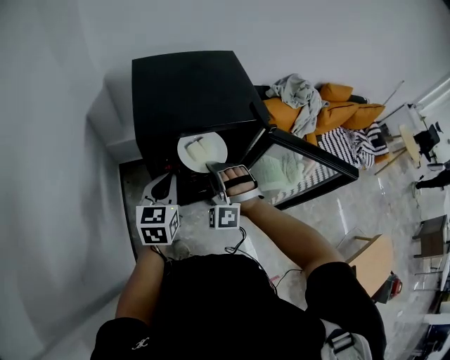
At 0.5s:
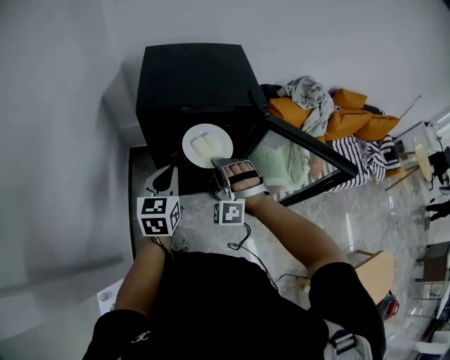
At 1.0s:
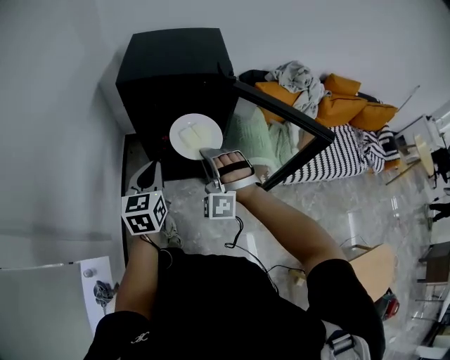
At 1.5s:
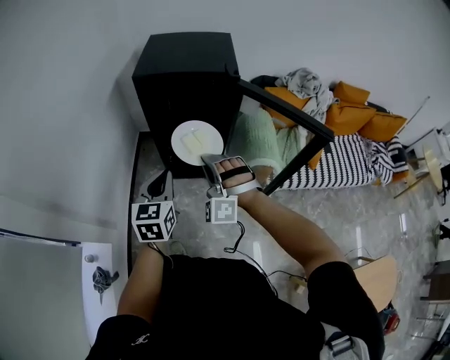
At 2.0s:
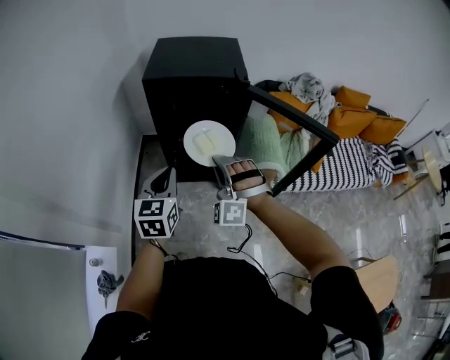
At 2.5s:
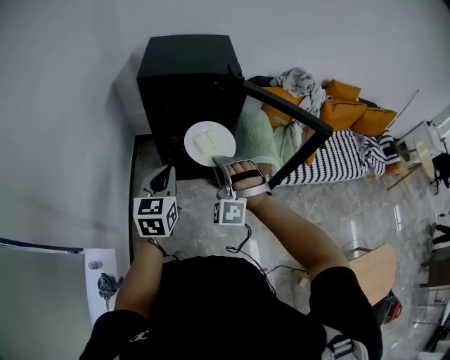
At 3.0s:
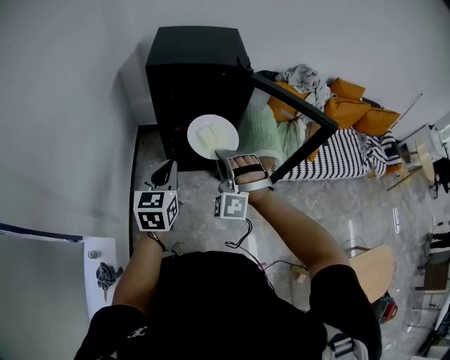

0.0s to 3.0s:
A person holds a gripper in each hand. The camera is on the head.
0.0s to 1.5s: Both grippers travel together backward and to the right, some 25 cm.
1.5s to 3.0s: The grippers make only small movements.

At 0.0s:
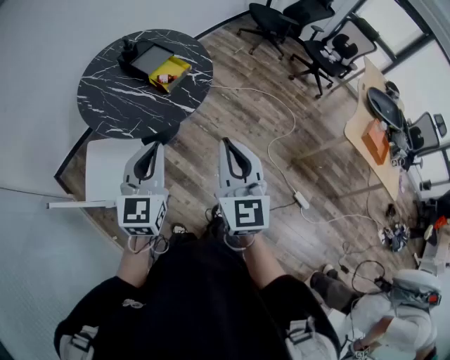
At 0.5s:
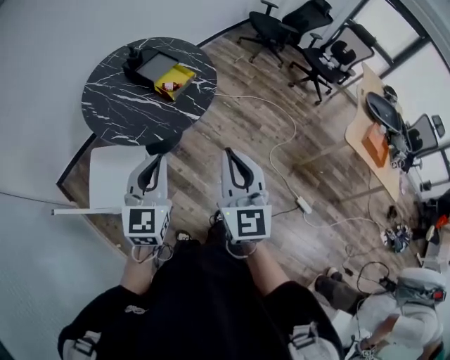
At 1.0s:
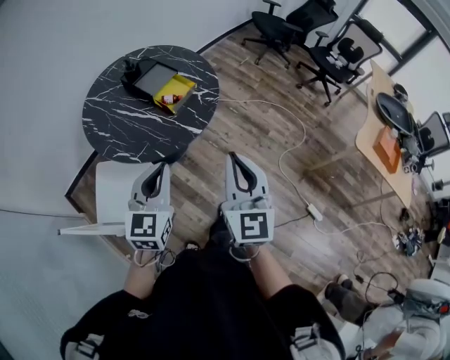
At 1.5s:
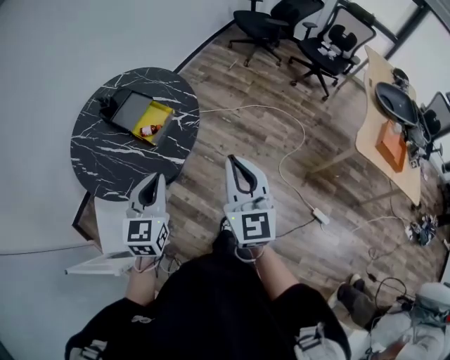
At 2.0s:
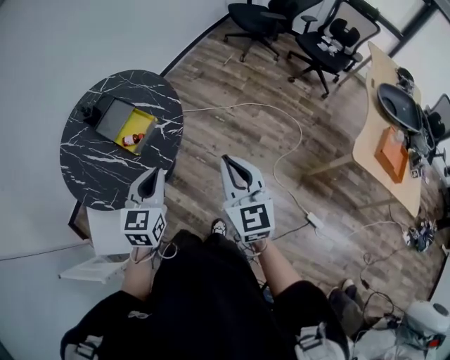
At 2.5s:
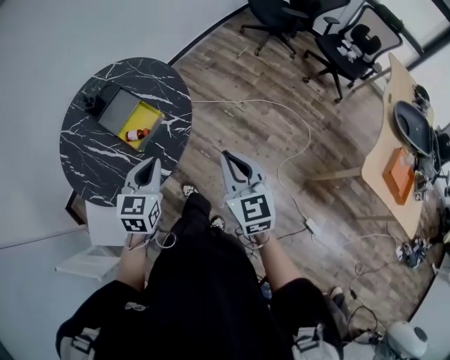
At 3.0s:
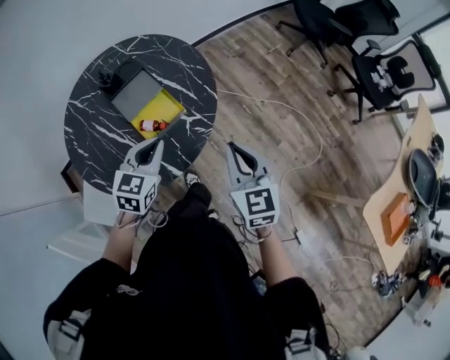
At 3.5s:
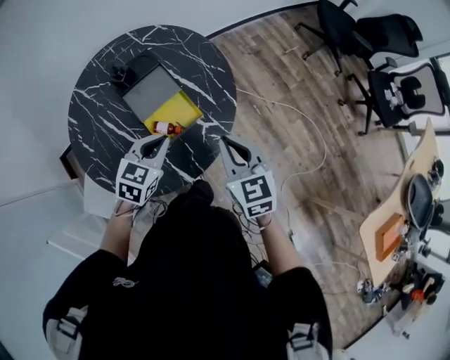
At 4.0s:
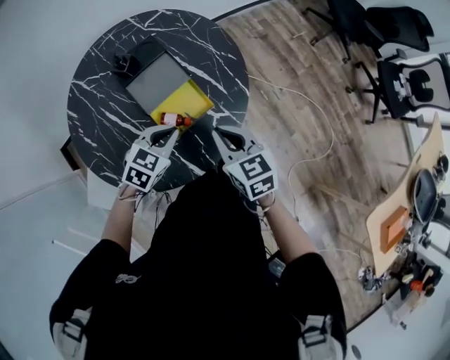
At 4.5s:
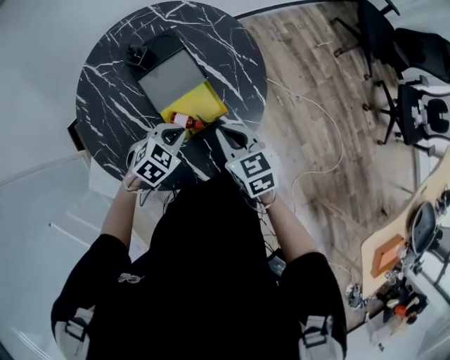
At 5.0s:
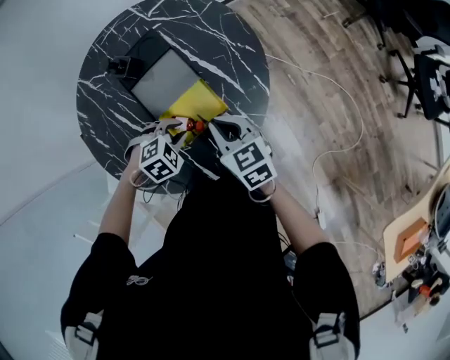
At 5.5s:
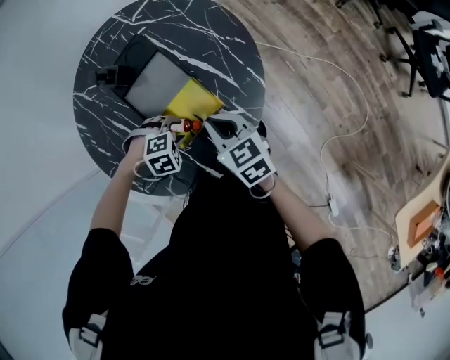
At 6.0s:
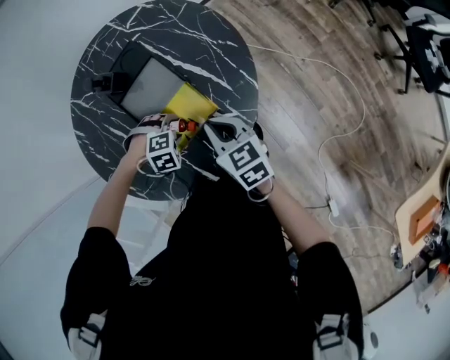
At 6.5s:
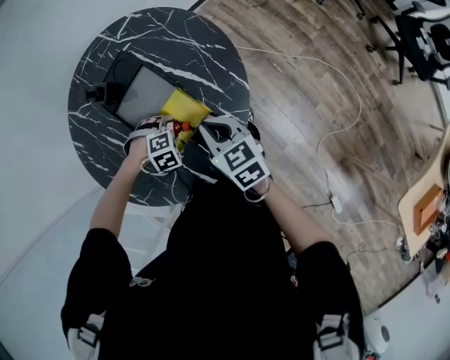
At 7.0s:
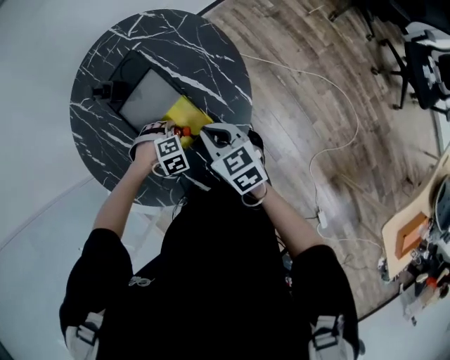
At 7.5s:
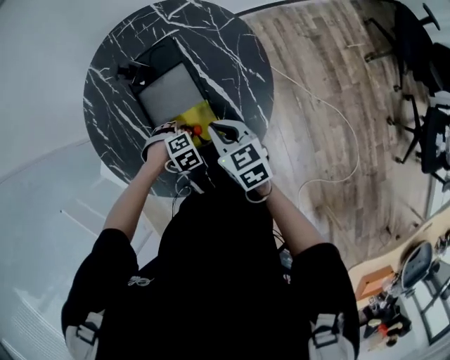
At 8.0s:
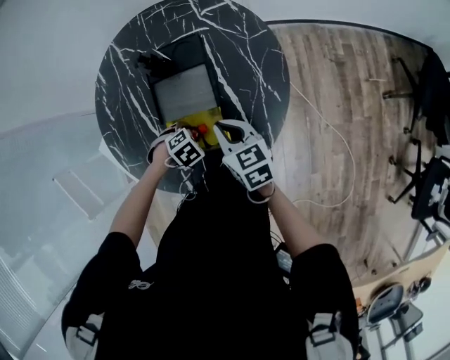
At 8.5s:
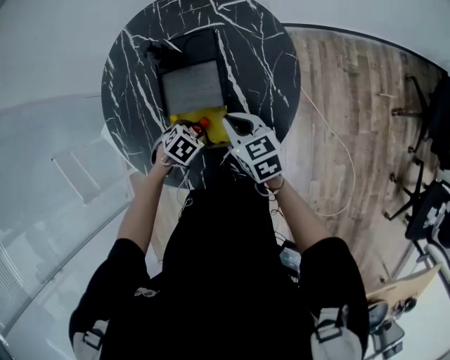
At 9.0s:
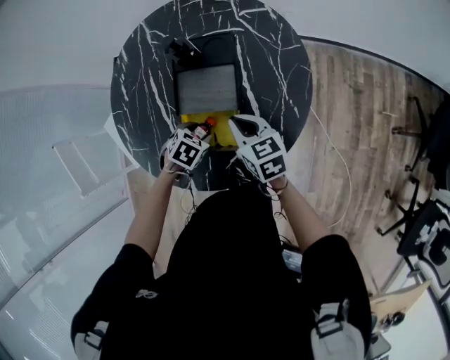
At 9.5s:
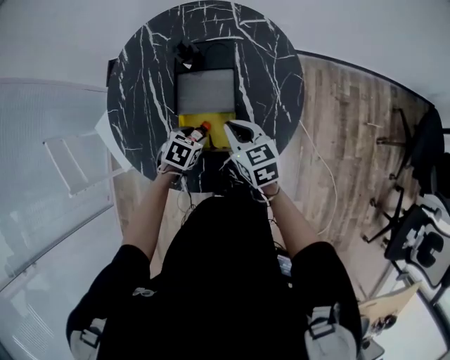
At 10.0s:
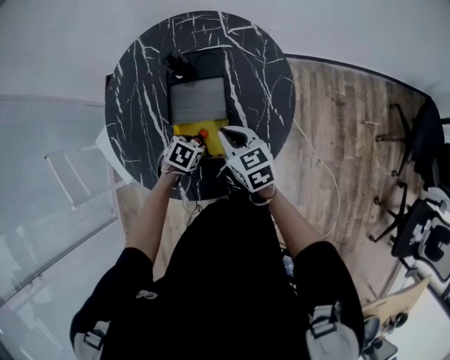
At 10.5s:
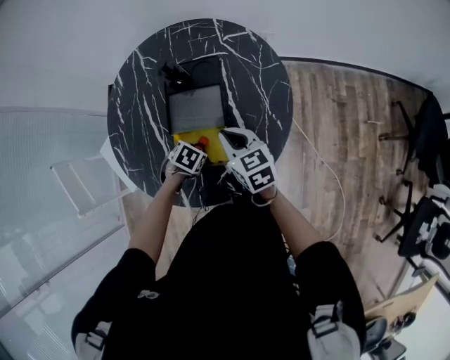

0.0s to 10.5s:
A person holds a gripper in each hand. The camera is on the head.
0.0s to 2.0s: Both grippers travel together forward and to the right, roughly 30 cm.
2.0s to 4.0s: The right gripper shifts about 40 cm forward, to the left and downward, and turns by some 40 degrees; the left gripper heads forward, downward and to the left, covering about 30 cm, and changes its angle by about 20 degrees.
4.0s to 6.5s: The right gripper changes place by roughly 10 cm. The left gripper is displaced downward by some 15 cm, tilts its fingers approximately 40 degrees downward, and opens.
6.5s to 8.5s: The left gripper twists roughly 80 degrees counterclockwise, seen from behind; the right gripper shifts by about 10 cm, and changes its angle by about 40 degrees.

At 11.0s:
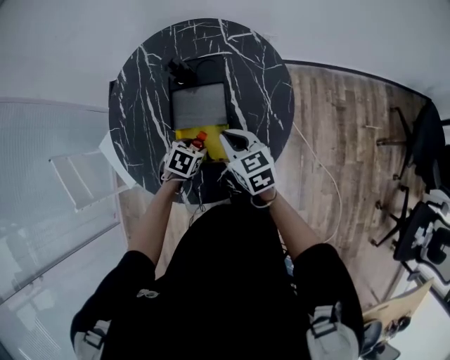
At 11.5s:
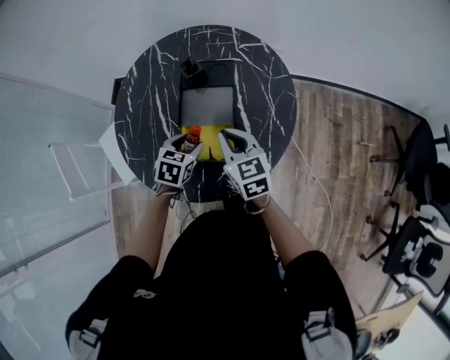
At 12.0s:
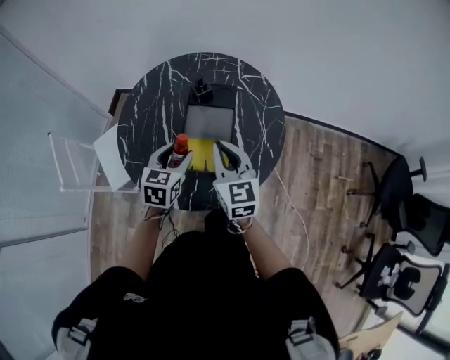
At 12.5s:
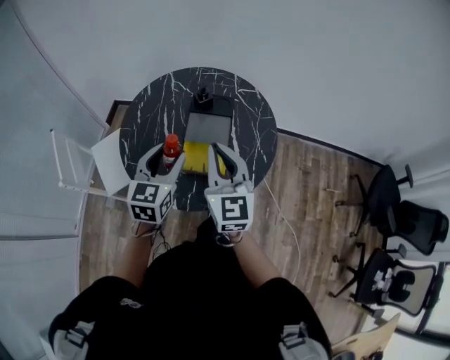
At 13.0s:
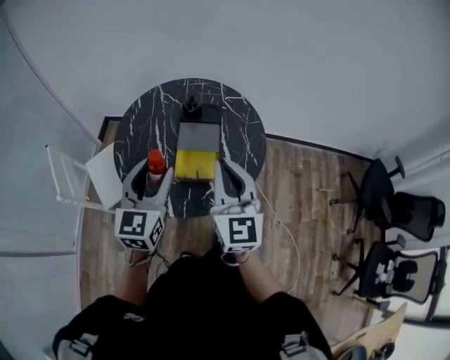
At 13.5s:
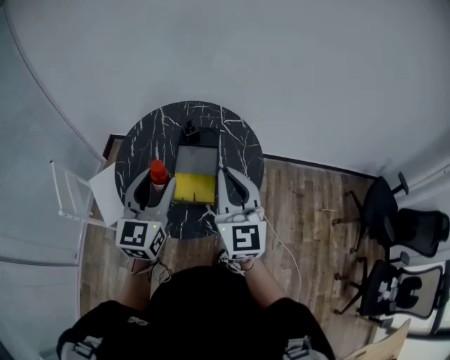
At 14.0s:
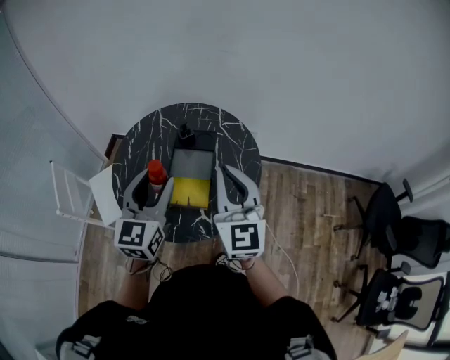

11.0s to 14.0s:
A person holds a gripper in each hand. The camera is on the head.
11.0s to 12.5s: The right gripper moves upward and backward, some 25 cm, and swivels roughly 40 degrees. Meanwhile the left gripper is displaced upward by approximately 30 cm, and points its fingers some 50 degrees further upward.
12.5s to 14.0s: The right gripper is displaced to the right and upward by approximately 15 cm. Meanwhile the left gripper heads upward and to the right, covering some 10 cm.

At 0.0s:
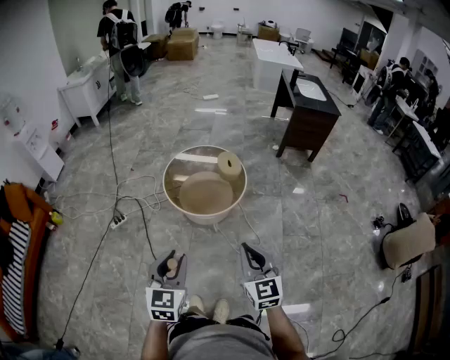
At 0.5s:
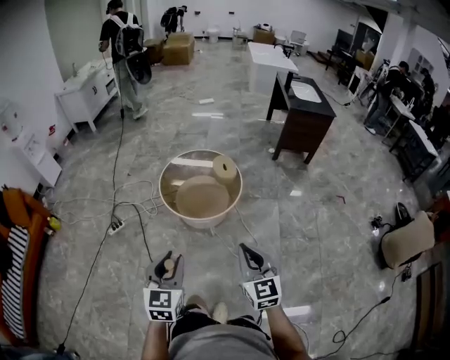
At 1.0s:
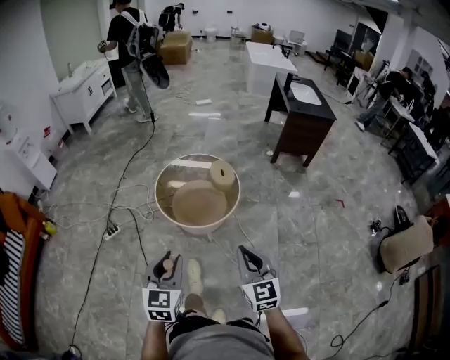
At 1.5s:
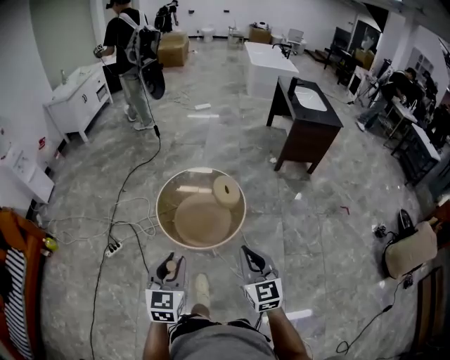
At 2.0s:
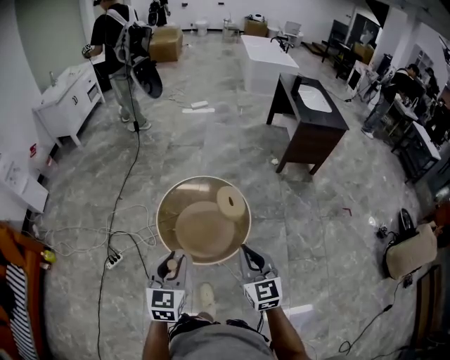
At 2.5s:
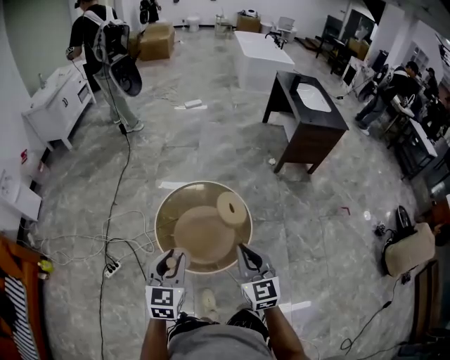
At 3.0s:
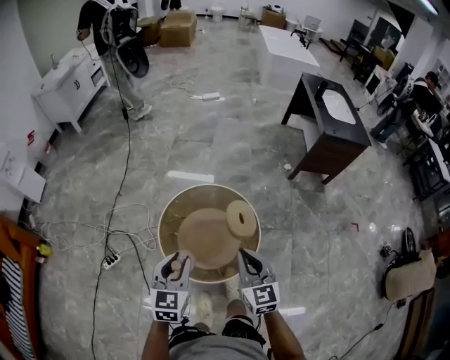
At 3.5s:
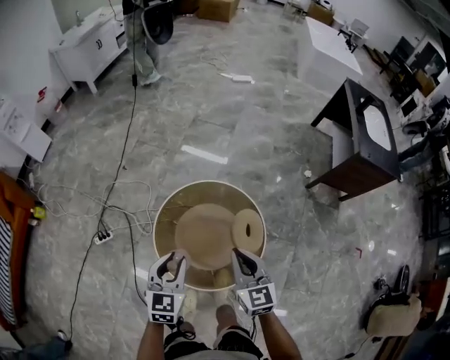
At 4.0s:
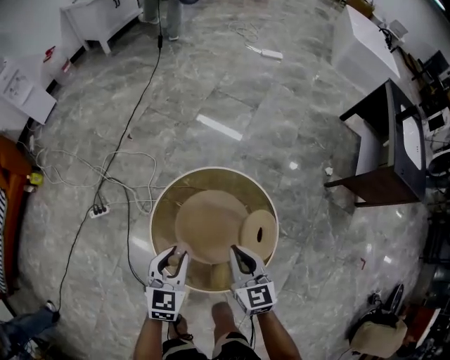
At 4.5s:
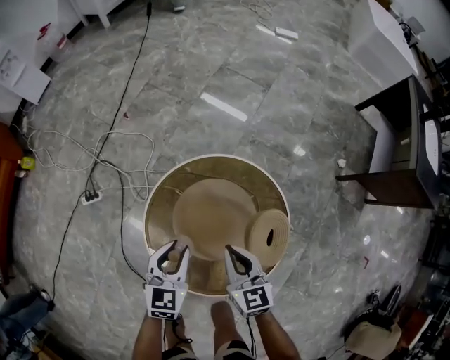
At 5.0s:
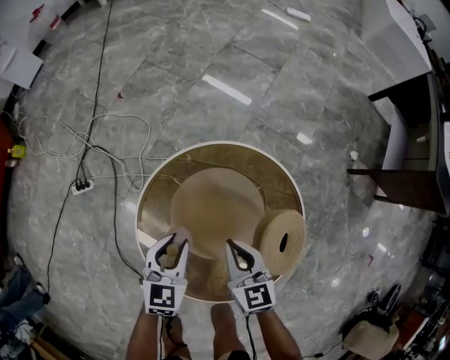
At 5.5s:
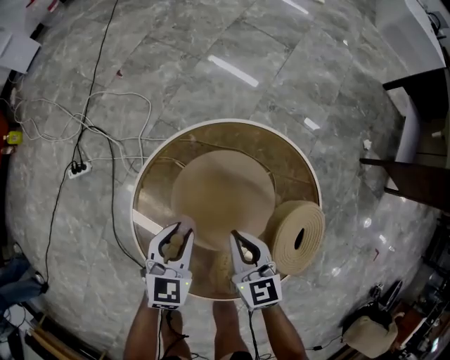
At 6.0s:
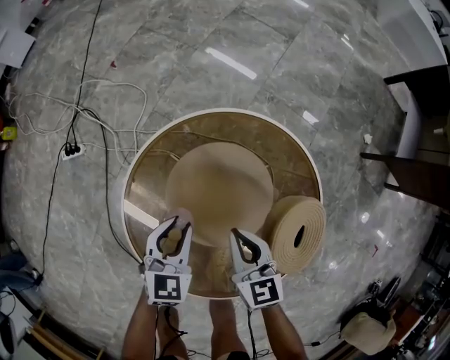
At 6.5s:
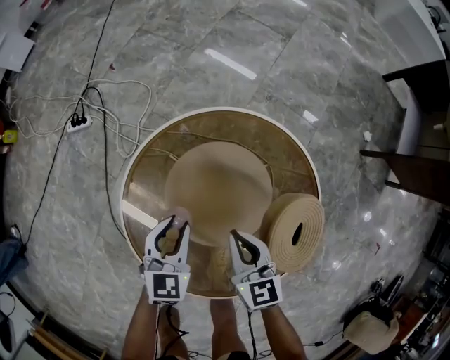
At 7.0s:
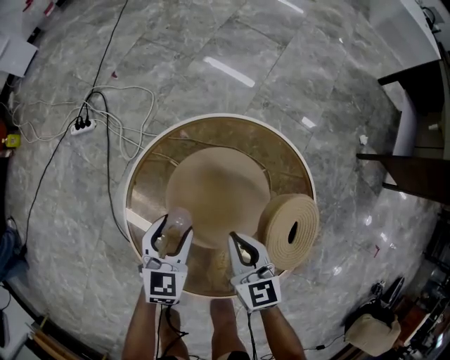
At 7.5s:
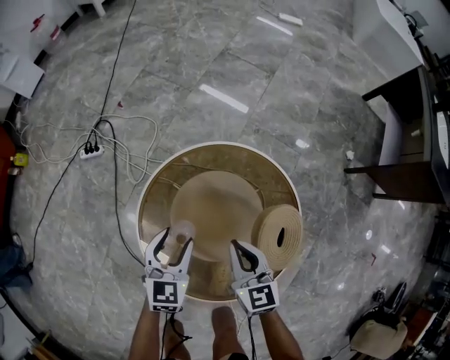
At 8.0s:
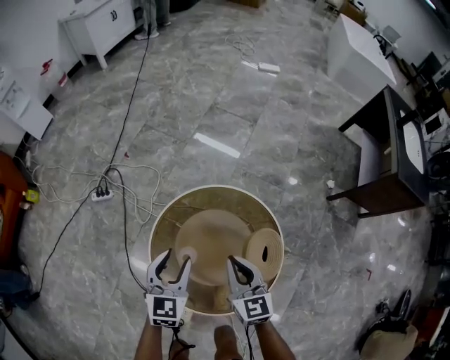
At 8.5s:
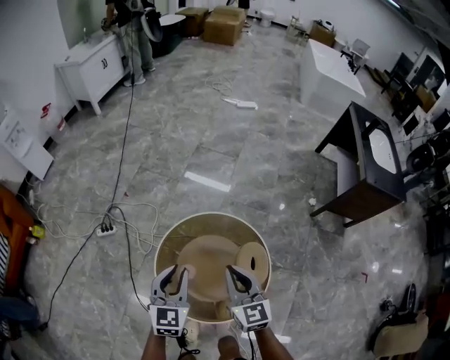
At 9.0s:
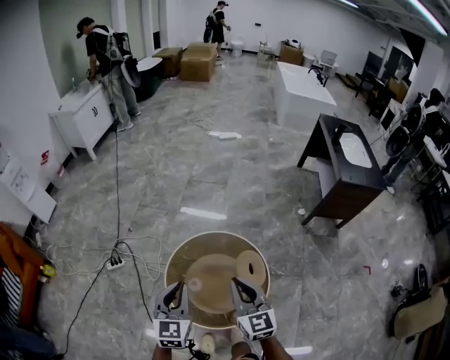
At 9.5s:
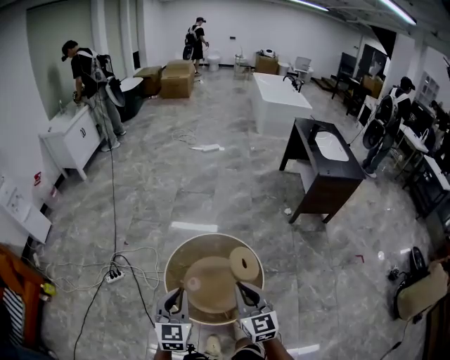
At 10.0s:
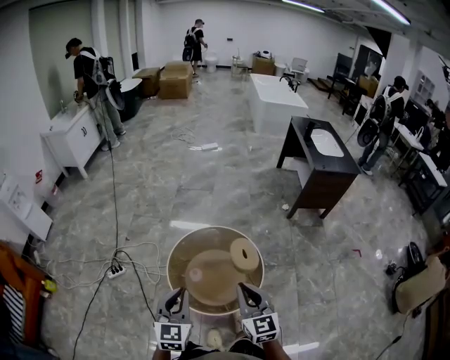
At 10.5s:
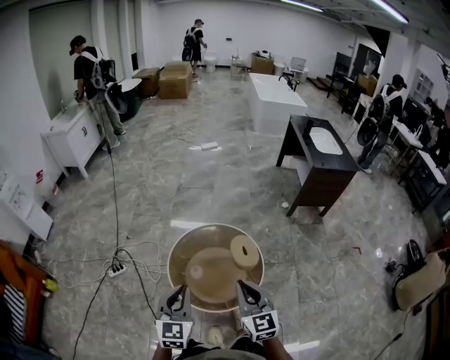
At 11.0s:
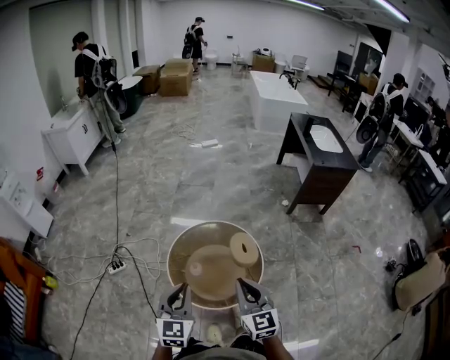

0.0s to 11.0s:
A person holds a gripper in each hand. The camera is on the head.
0.0s to 2.0s: The two grippers go some 35 cm forward.
2.0s to 3.5s: The two grippers go approximately 30 cm forward and downward.
3.5s to 5.5s: The grippers both shift downward by approximately 40 cm. The right gripper swivels roughly 20 degrees.
5.5s to 7.5s: Both grippers travel together upward, about 10 cm. The left gripper opens.
7.5s to 9.0s: The two grippers go some 40 cm upward. The left gripper swivels about 20 degrees, and closes its fingers; the right gripper changes its angle by approximately 30 degrees.
9.0s to 11.0s: Both grippers travel together backward, some 20 cm.
